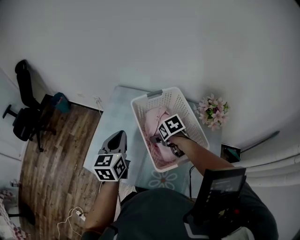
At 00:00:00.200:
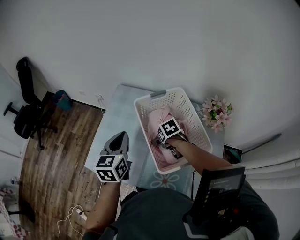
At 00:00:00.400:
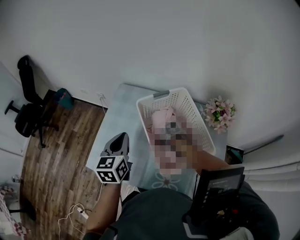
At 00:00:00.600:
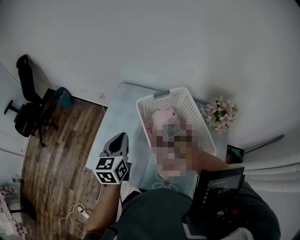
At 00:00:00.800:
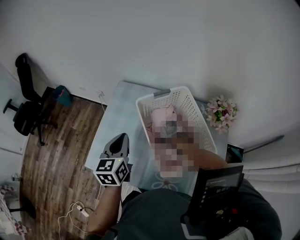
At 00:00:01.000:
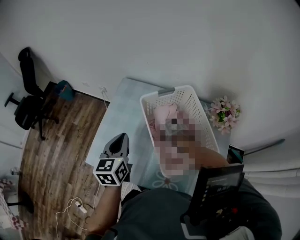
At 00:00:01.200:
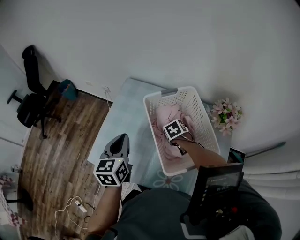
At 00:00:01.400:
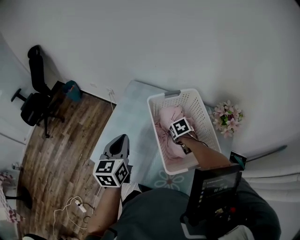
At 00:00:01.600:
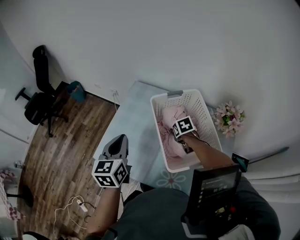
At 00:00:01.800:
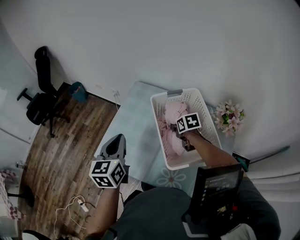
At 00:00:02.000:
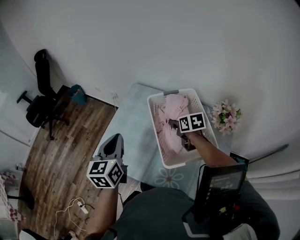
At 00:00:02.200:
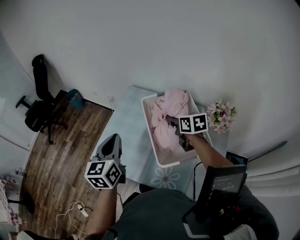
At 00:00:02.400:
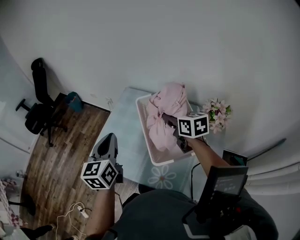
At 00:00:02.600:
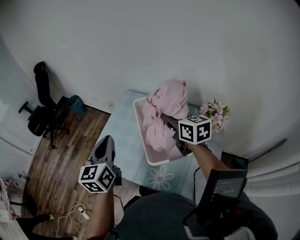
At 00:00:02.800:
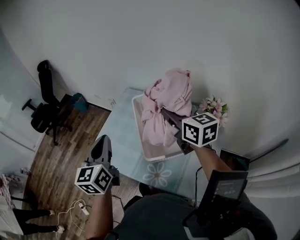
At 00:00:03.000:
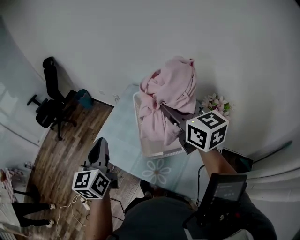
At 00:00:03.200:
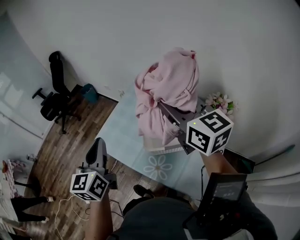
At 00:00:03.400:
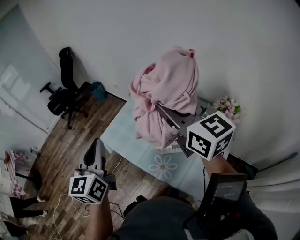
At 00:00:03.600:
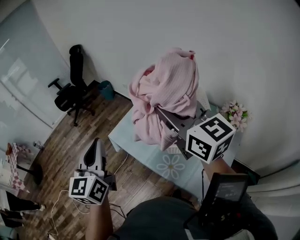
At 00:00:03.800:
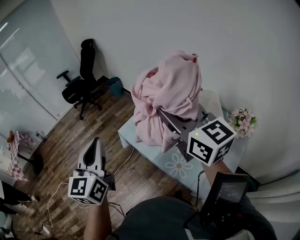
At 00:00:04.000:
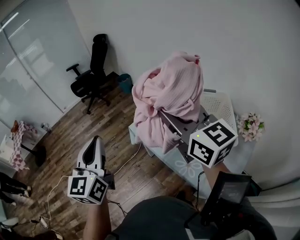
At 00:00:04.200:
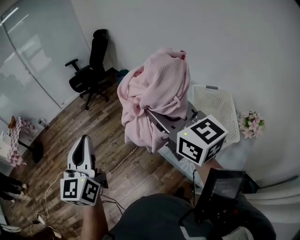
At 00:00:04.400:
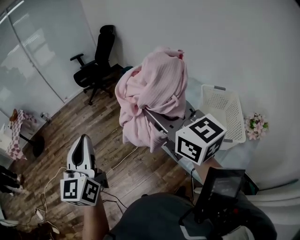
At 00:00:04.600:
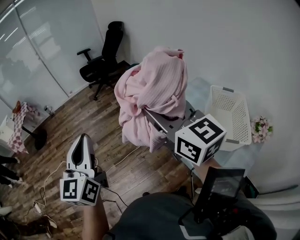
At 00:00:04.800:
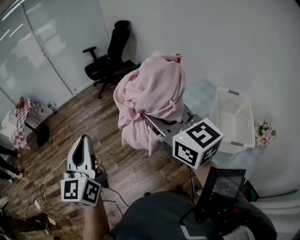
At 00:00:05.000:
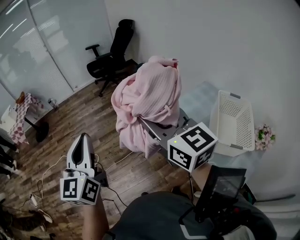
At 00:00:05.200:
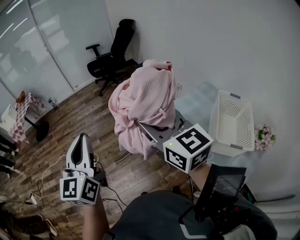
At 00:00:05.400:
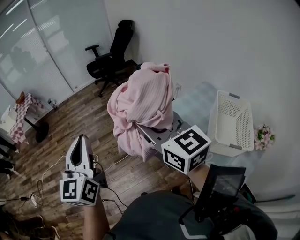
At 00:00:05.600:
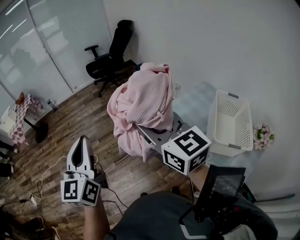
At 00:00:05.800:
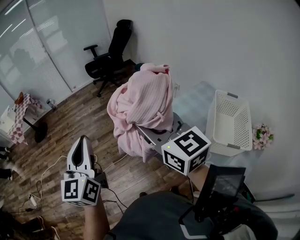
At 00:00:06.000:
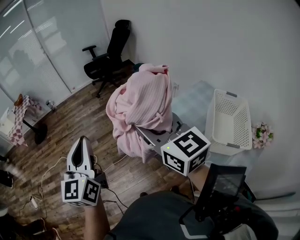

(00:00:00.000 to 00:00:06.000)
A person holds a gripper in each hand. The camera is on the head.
00:00:00.000 - 00:00:01.600: The right gripper is displaced downward by some 5 cm, and closes up. The left gripper moves approximately 5 cm.
00:00:01.600 - 00:00:03.000: The right gripper shifts roughly 40 cm upward, and points its fingers approximately 60 degrees further upward. The left gripper shifts about 15 cm backward and upward.
00:00:03.000 - 00:00:04.400: The left gripper ends up roughly 40 cm from where it was, and turns by roughly 30 degrees, while the right gripper changes place by about 40 cm, and changes its angle by roughly 30 degrees.
00:00:04.400 - 00:00:06.000: Both grippers move to the left, about 10 cm.

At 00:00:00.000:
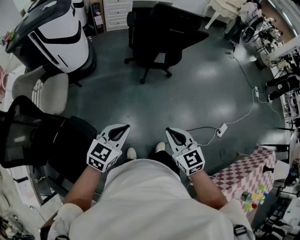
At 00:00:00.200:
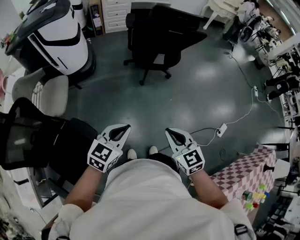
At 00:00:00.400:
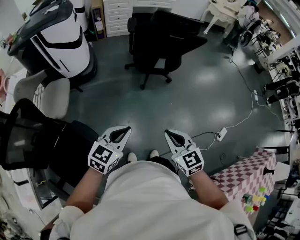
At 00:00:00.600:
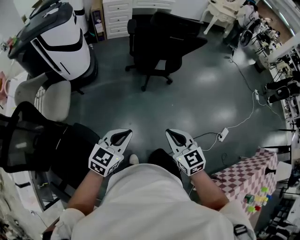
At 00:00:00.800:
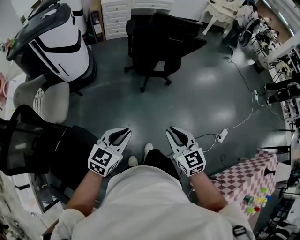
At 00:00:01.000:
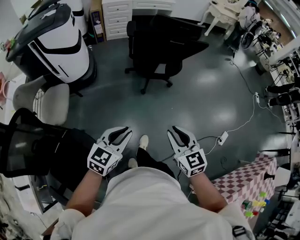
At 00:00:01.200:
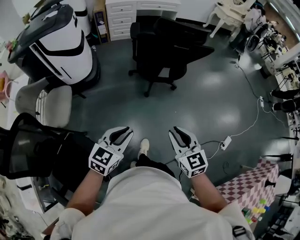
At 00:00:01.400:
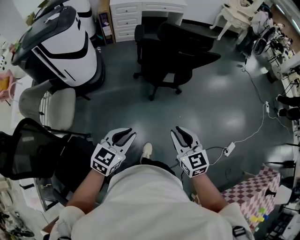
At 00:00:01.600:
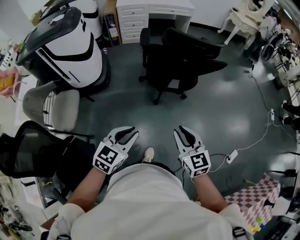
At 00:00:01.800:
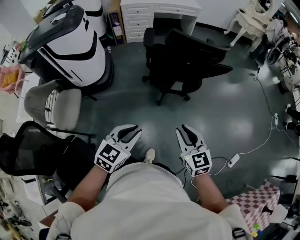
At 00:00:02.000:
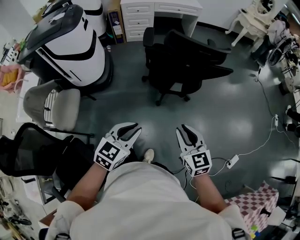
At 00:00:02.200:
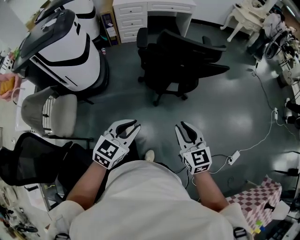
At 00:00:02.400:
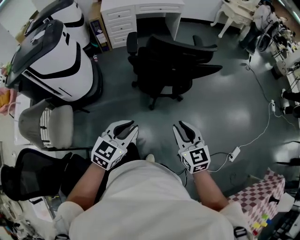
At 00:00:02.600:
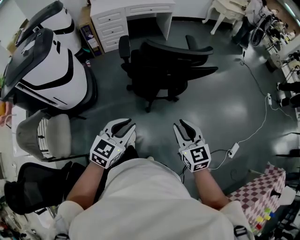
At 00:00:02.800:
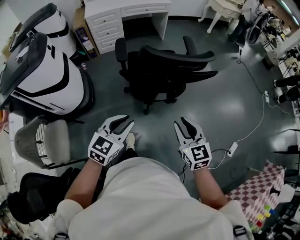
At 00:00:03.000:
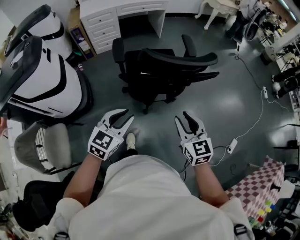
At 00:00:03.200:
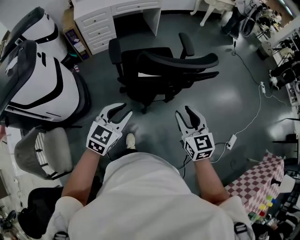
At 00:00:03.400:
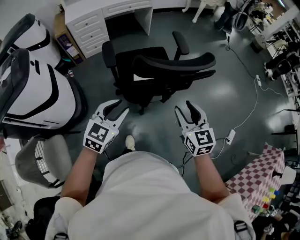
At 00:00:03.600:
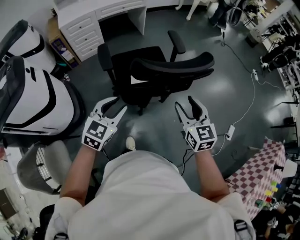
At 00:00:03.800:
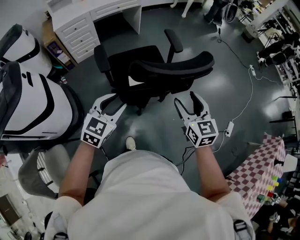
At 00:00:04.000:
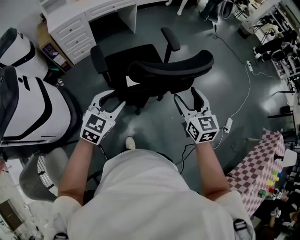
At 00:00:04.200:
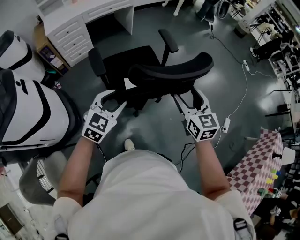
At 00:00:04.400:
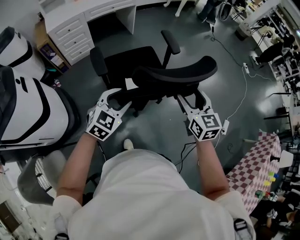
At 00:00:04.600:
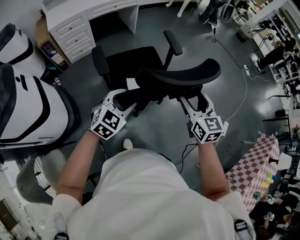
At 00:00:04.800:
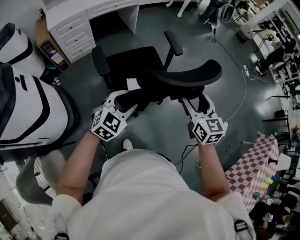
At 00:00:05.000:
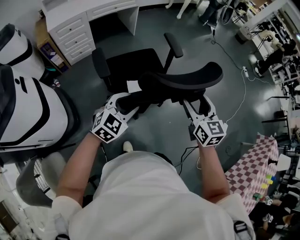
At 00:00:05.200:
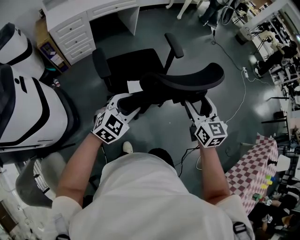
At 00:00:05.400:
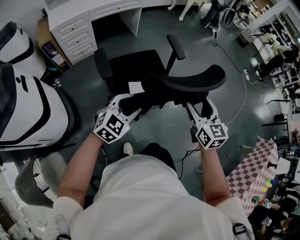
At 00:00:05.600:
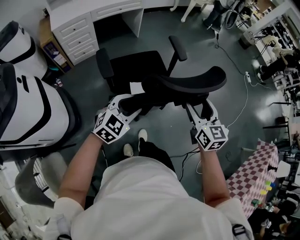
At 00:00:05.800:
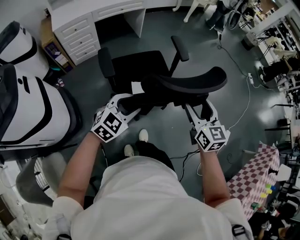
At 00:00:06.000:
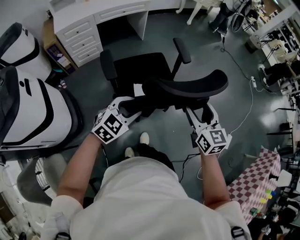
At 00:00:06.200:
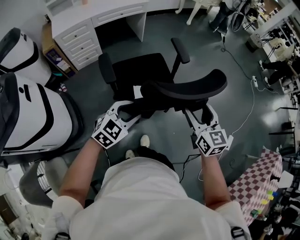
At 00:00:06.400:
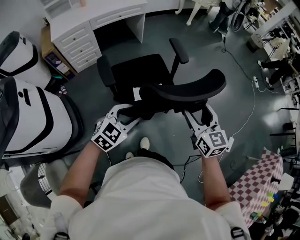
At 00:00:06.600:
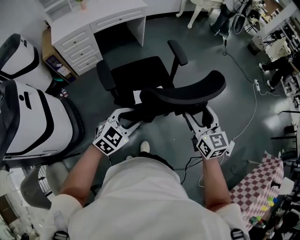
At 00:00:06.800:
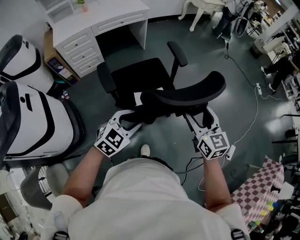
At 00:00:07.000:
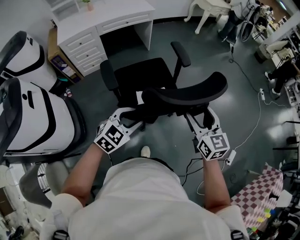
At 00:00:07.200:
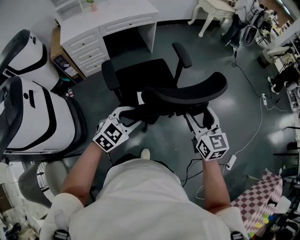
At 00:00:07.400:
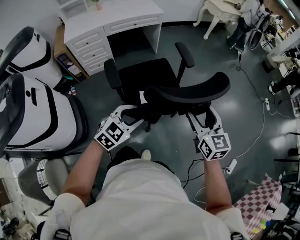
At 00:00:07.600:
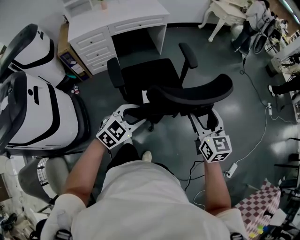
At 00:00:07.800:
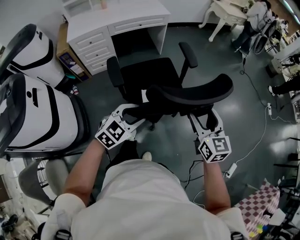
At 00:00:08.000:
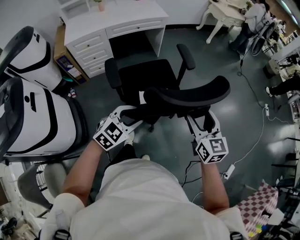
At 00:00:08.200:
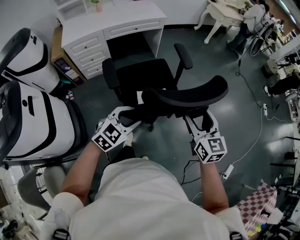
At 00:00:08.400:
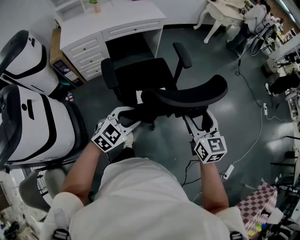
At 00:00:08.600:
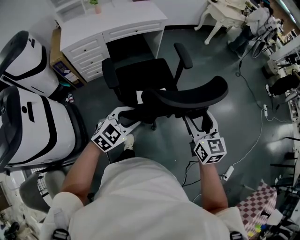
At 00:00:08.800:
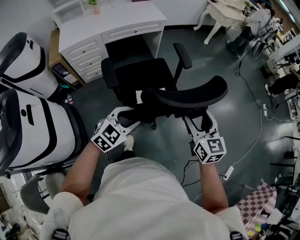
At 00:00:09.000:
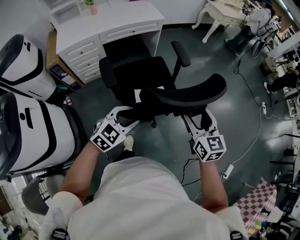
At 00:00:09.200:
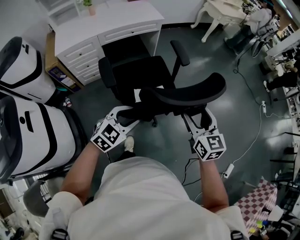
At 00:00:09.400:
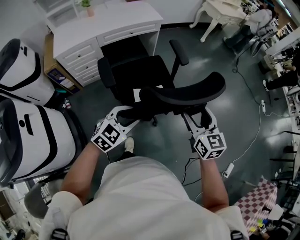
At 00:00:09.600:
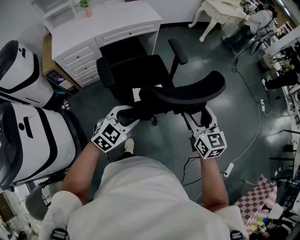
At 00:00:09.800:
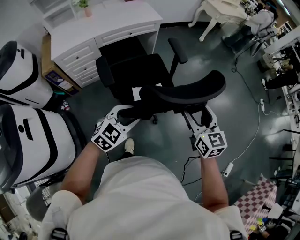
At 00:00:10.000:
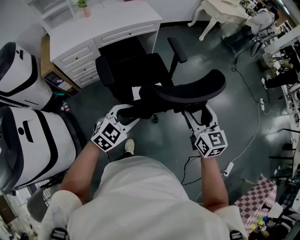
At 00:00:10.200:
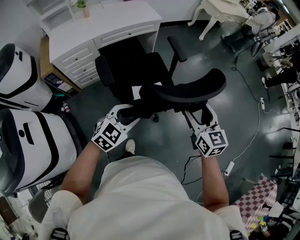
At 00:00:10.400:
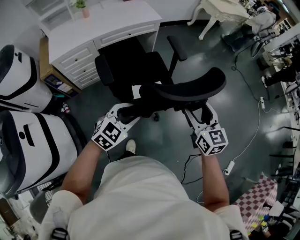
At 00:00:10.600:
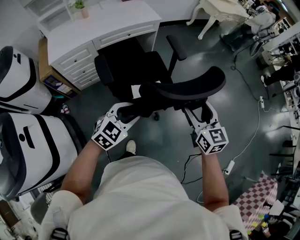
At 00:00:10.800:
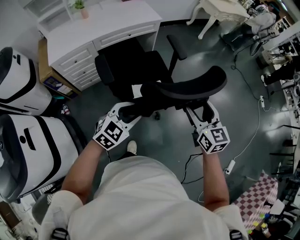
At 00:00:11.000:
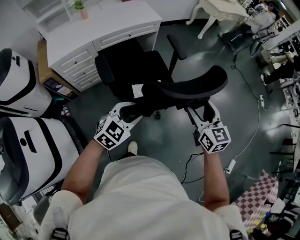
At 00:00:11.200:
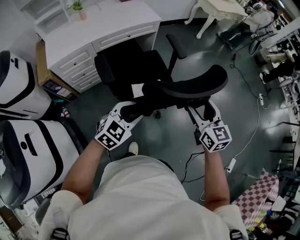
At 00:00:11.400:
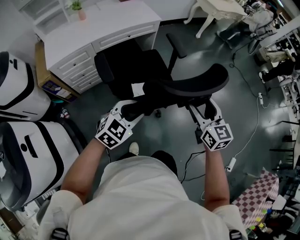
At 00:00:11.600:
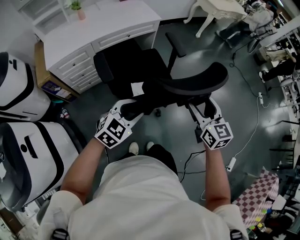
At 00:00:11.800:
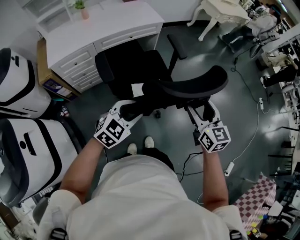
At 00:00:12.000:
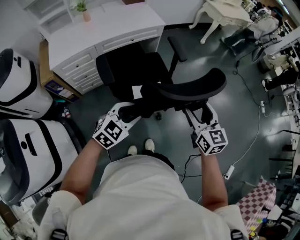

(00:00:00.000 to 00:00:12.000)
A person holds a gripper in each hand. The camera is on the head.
00:00:00.000 - 00:00:01.600: Both grippers move forward, about 20 cm.
00:00:01.600 - 00:00:03.000: Both grippers travel together forward, approximately 25 cm.
00:00:03.000 - 00:00:04.400: Both grippers travel together forward, roughly 15 cm. The left gripper turns by about 20 degrees, and opens its fingers. Meanwhile the right gripper opens up.
00:00:04.400 - 00:00:06.000: The right gripper travels forward by roughly 5 cm. The left gripper moves roughly 5 cm.
00:00:06.000 - 00:00:07.600: Both grippers move forward, roughly 15 cm.
00:00:07.600 - 00:00:09.000: The two grippers go approximately 15 cm forward and to the left.
00:00:09.000 - 00:00:10.400: The grippers both shift forward by roughly 5 cm.
00:00:10.400 - 00:00:12.000: The two grippers go roughly 5 cm forward.

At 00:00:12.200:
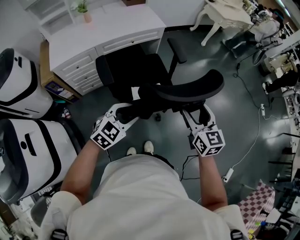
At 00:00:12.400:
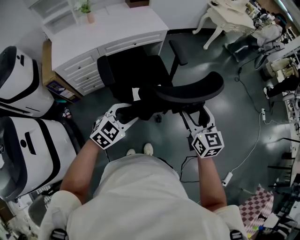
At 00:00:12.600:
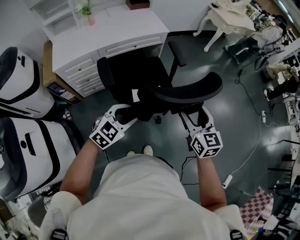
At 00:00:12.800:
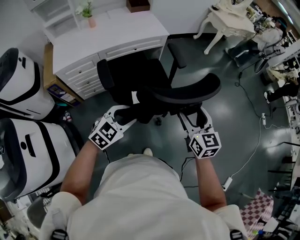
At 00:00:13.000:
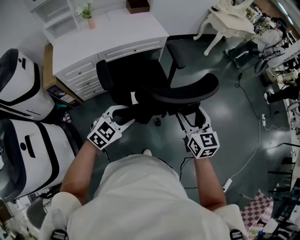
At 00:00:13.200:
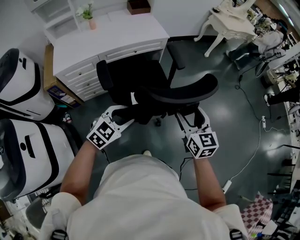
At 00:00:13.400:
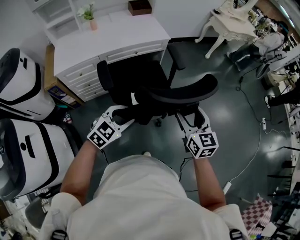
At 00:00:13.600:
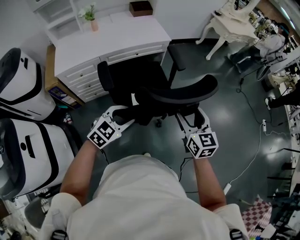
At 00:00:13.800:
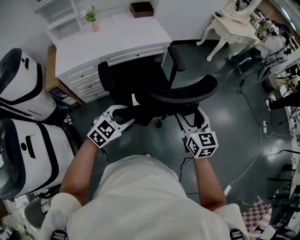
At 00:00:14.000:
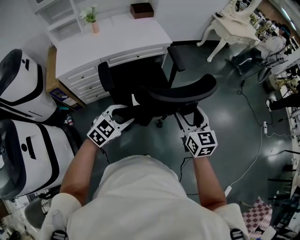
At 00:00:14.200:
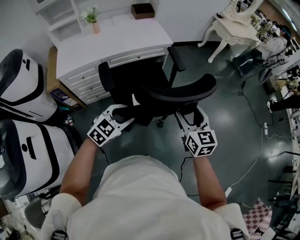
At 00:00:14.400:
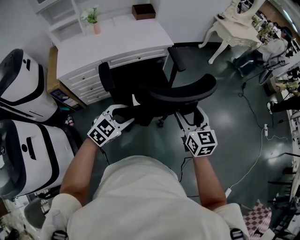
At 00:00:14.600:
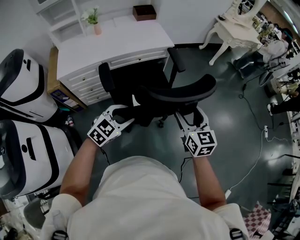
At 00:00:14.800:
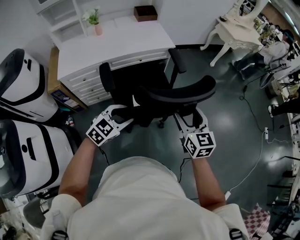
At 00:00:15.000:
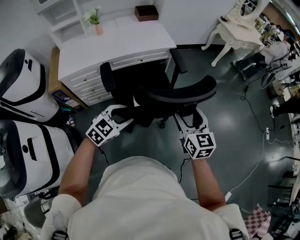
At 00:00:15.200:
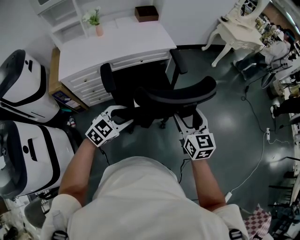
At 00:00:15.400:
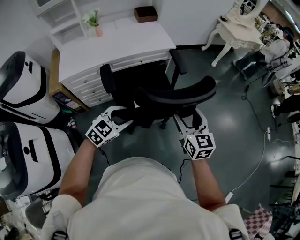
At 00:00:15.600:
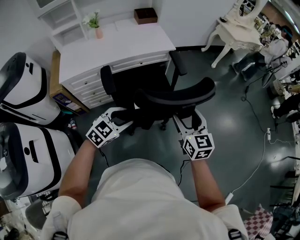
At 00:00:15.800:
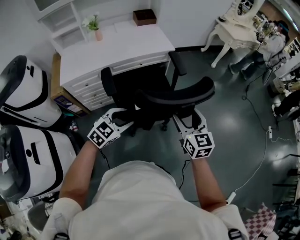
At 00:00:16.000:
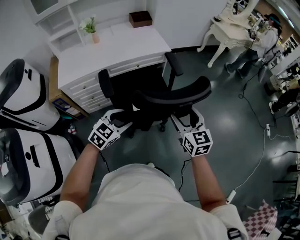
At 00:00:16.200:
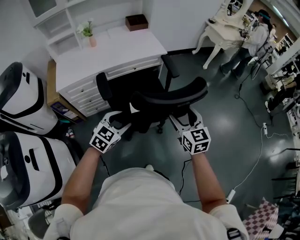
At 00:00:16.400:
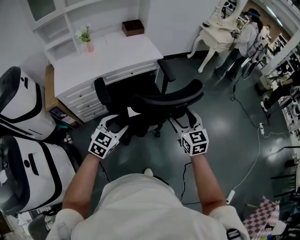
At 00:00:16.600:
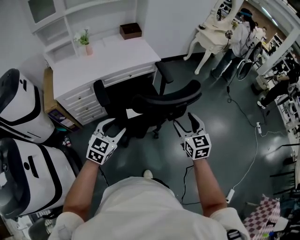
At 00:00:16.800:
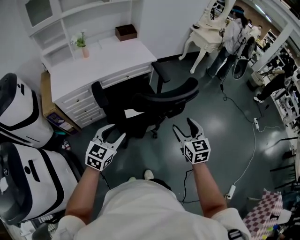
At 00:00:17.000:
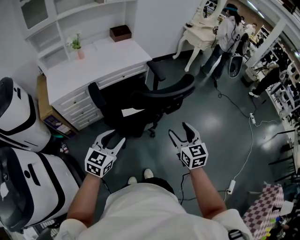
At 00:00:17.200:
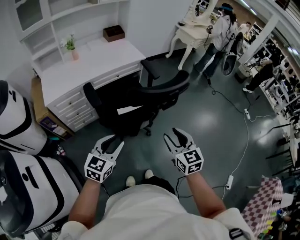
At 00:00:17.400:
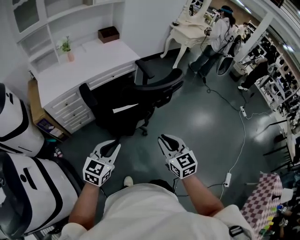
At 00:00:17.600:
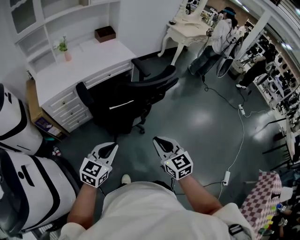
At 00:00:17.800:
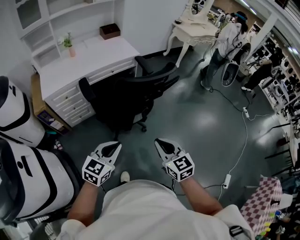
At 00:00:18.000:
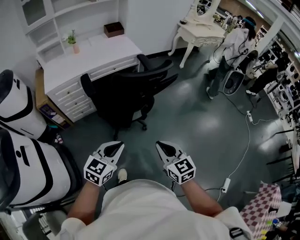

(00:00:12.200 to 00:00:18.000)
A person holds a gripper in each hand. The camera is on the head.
00:00:12.200 - 00:00:13.600: The right gripper travels forward by about 5 cm; the left gripper changes place by approximately 5 cm.
00:00:13.600 - 00:00:15.000: The right gripper shifts by some 5 cm.
00:00:15.000 - 00:00:16.600: The left gripper moves some 5 cm.
00:00:16.600 - 00:00:18.000: The right gripper shifts some 25 cm backward, and closes up. Meanwhile the left gripper moves backward and to the right, approximately 25 cm, and closes its fingers.
